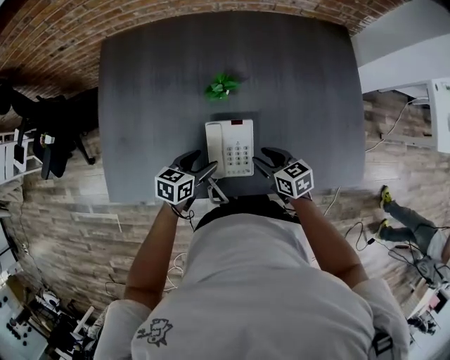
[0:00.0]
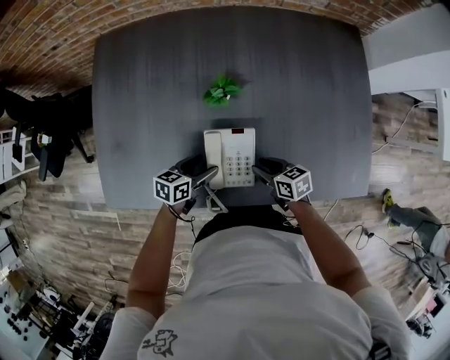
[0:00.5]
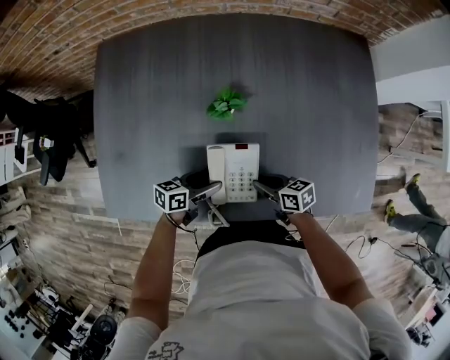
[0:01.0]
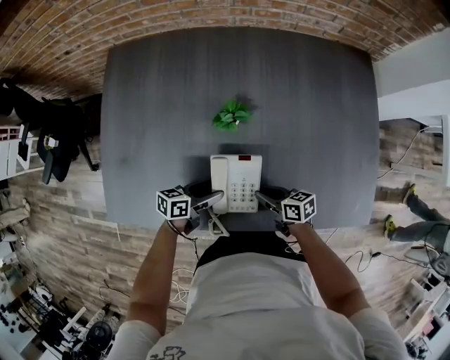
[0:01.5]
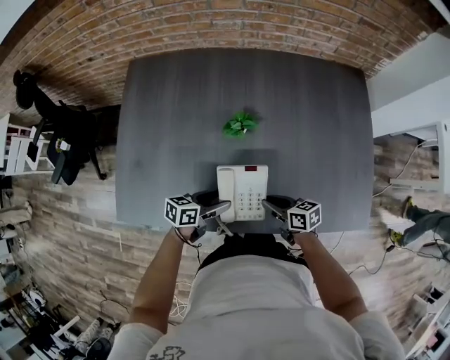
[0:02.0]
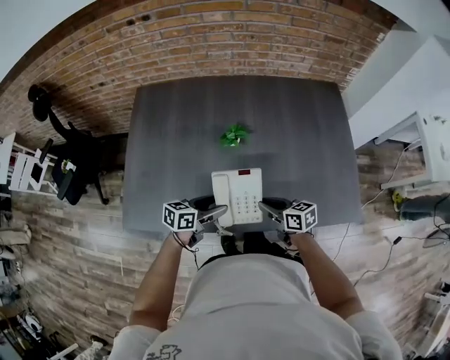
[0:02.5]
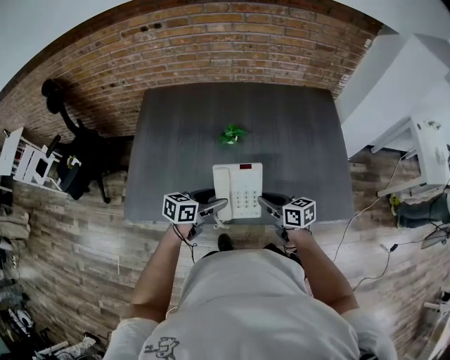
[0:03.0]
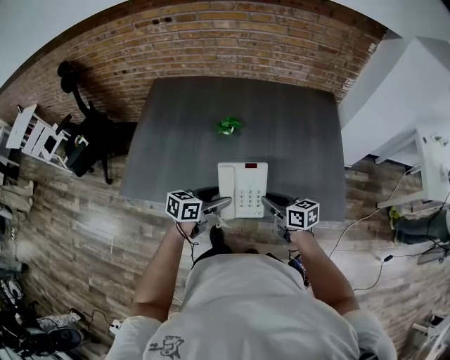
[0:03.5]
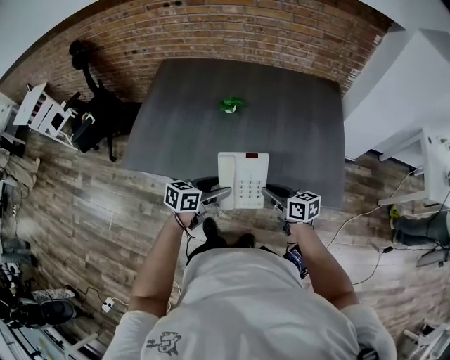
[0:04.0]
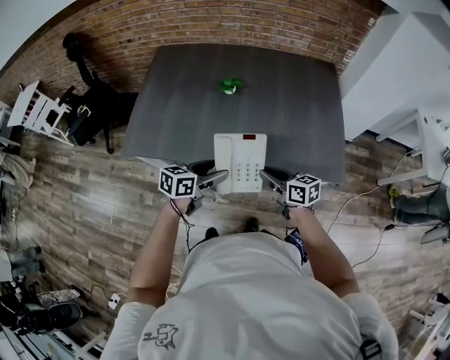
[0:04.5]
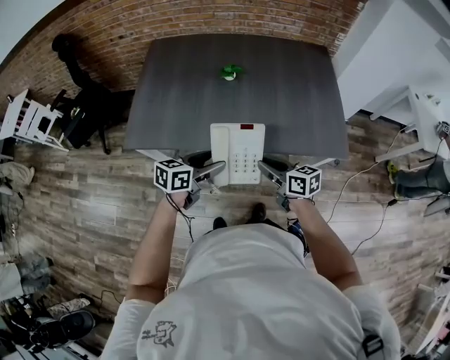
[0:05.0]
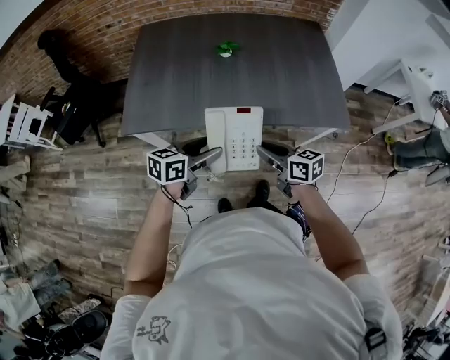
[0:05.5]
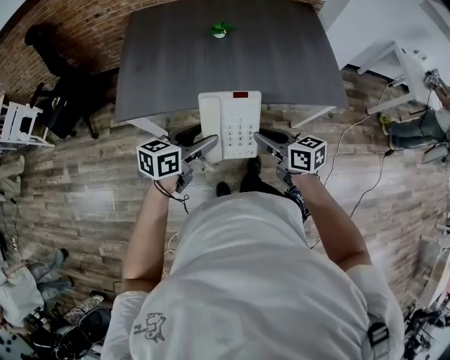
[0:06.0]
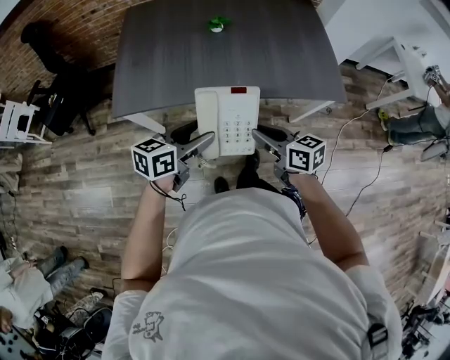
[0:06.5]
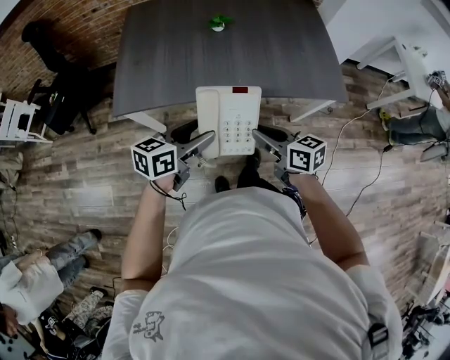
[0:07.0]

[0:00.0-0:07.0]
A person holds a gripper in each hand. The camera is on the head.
0:00.0 to 0:02.0: The right gripper closes its fingers.
0:02.0 to 0:03.5: The two grippers go approximately 15 cm upward.
0:03.5 to 0:05.0: Both grippers travel together backward and to the left, approximately 15 cm.
0:05.0 to 0:07.0: Both grippers move backward and to the left, approximately 10 cm.

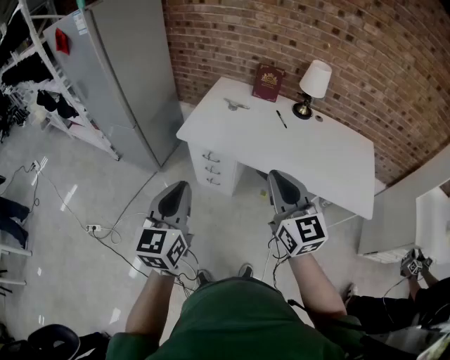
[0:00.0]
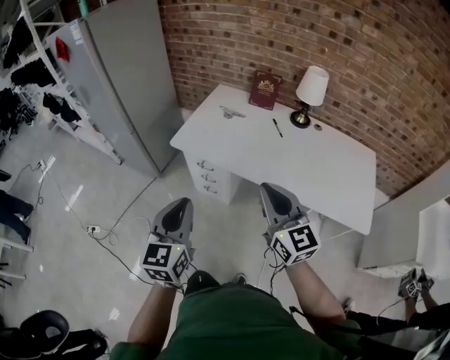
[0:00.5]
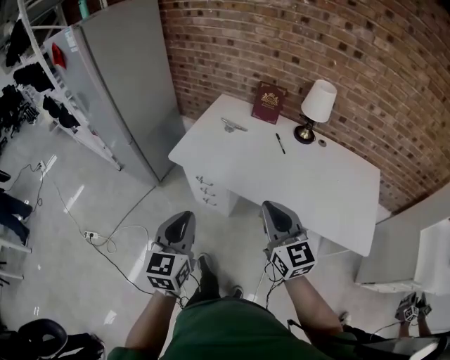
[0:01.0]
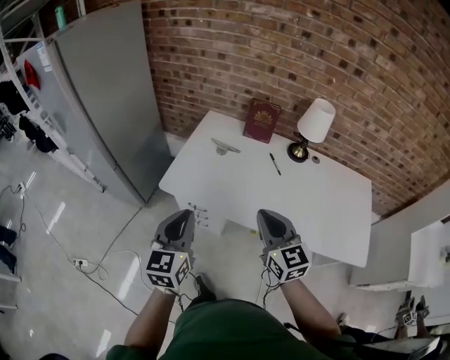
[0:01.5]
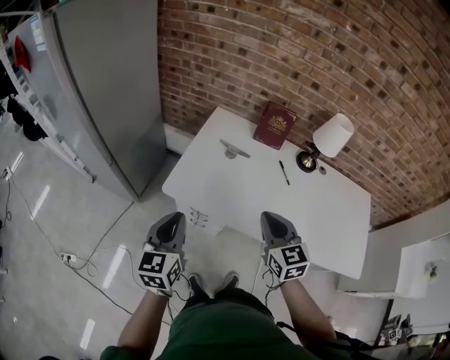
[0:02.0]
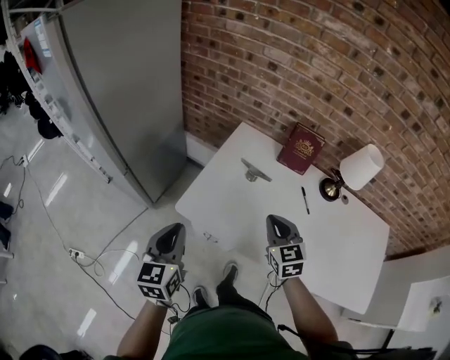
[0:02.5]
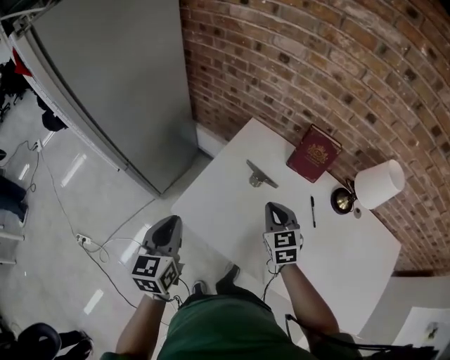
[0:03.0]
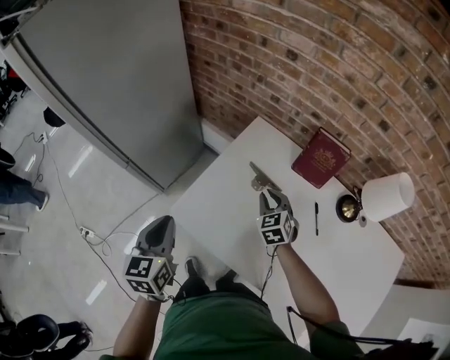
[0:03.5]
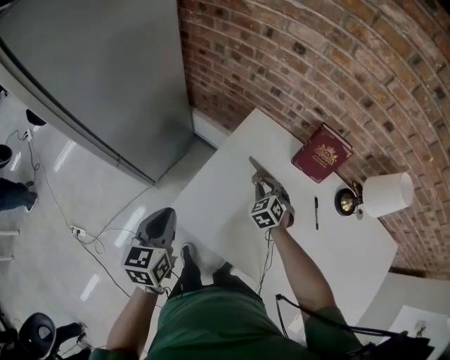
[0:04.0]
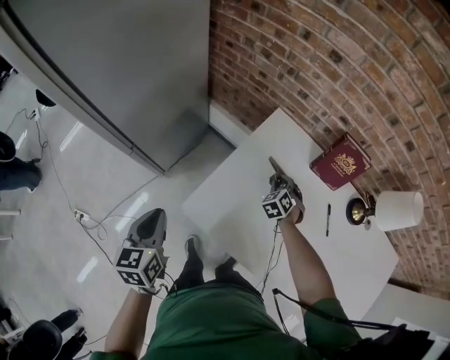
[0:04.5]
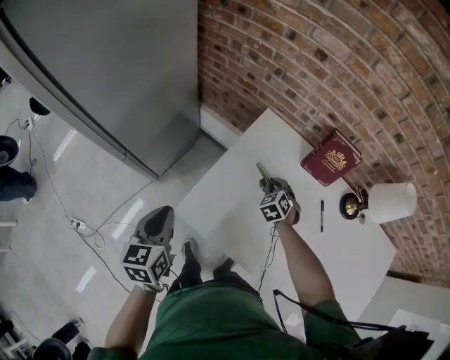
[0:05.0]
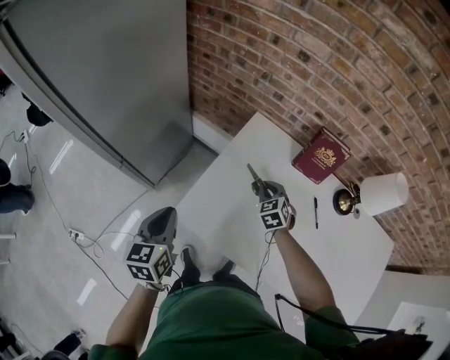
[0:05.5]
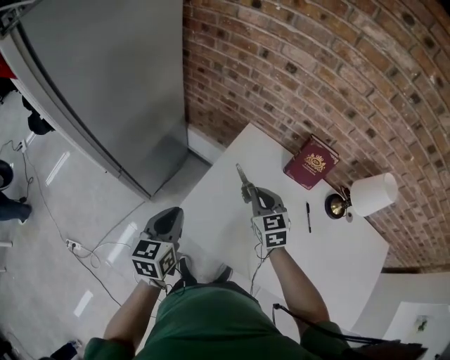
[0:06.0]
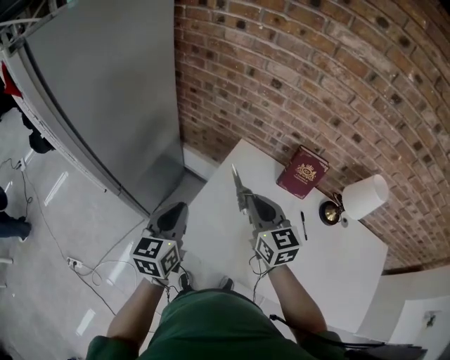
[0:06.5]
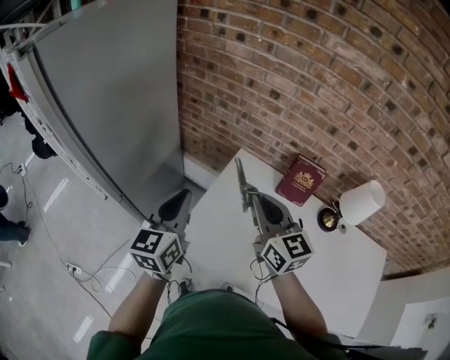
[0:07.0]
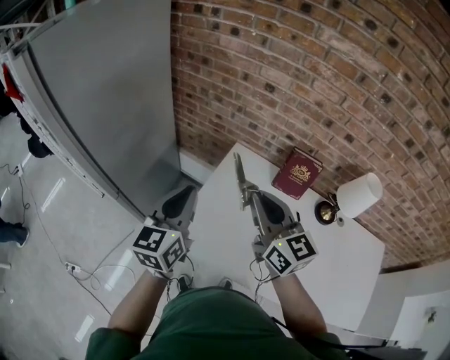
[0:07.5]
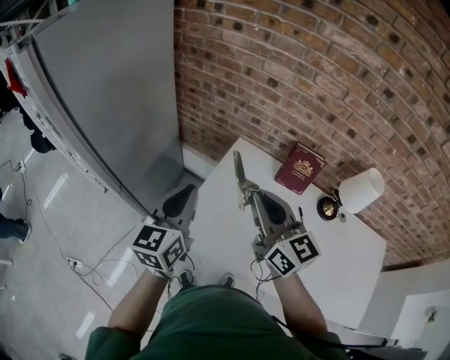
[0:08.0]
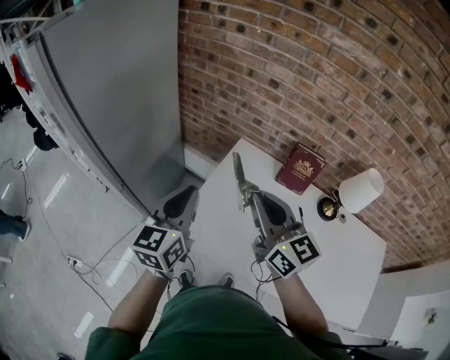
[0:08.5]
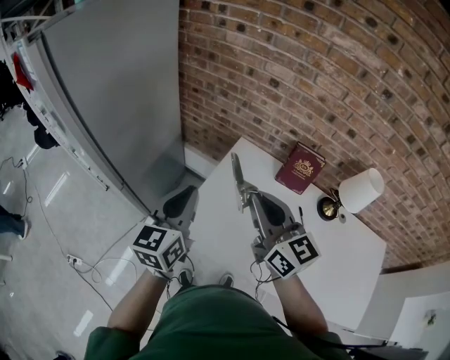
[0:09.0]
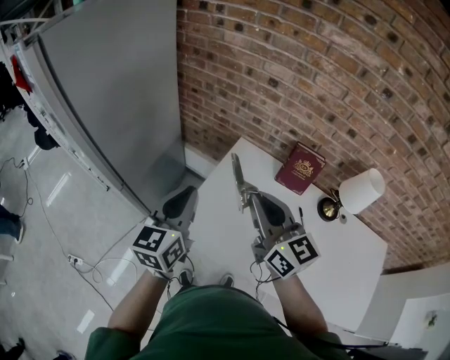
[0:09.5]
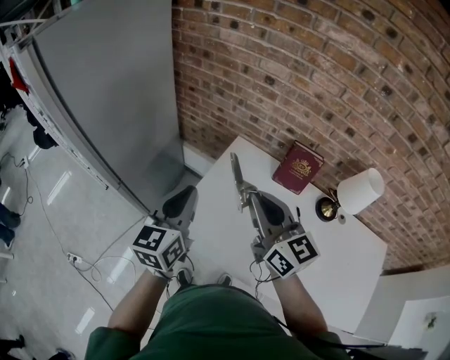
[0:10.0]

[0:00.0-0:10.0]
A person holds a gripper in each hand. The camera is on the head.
0:00.0 to 0:02.0: The right gripper is displaced forward and downward by approximately 30 cm, and swivels approximately 20 degrees; the left gripper moves forward, some 30 cm.
0:02.0 to 0:04.0: The left gripper heads forward, covering approximately 20 cm. The right gripper moves forward and downward, about 40 cm, and swivels about 40 degrees.
0:04.0 to 0:06.0: The right gripper is displaced upward by about 15 cm, and changes its angle by approximately 30 degrees; the left gripper reaches approximately 10 cm to the left, then returns.
0:06.0 to 0:08.0: The right gripper moves upward, roughly 25 cm, and tilts its fingers approximately 30 degrees upward; the left gripper is displaced upward by roughly 15 cm, and changes its angle by some 20 degrees.
0:08.0 to 0:10.0: There are only small adjustments of the grippers.

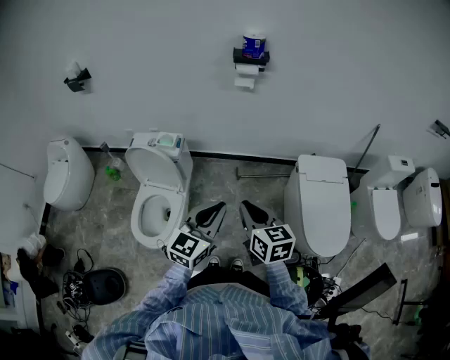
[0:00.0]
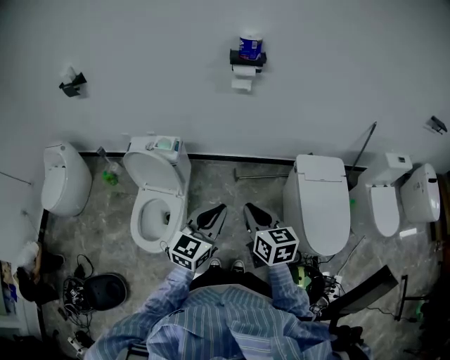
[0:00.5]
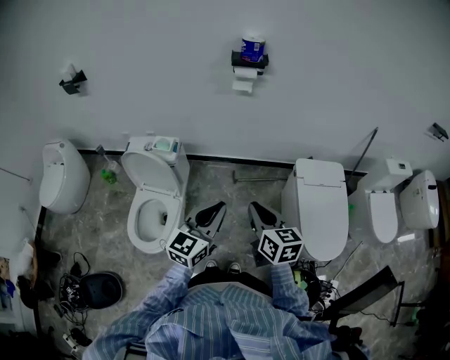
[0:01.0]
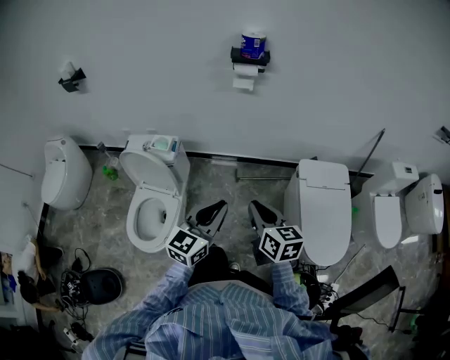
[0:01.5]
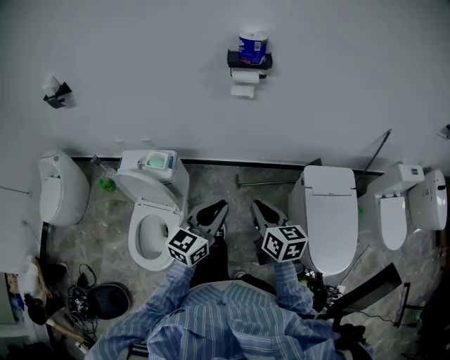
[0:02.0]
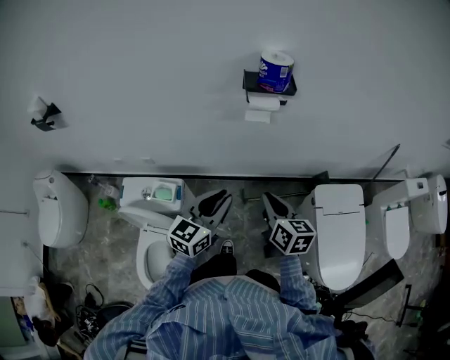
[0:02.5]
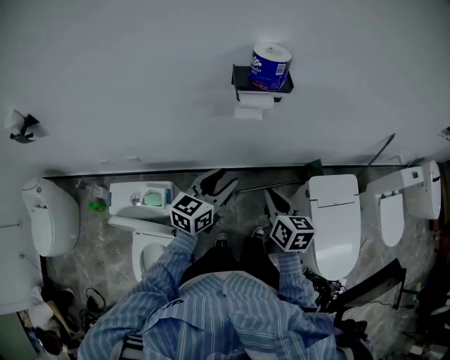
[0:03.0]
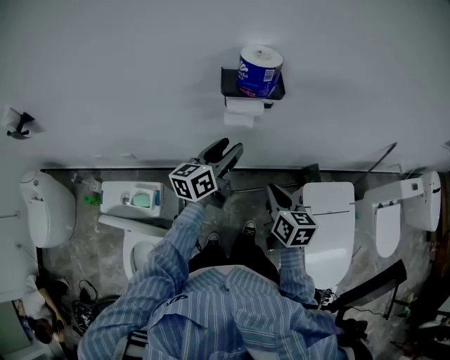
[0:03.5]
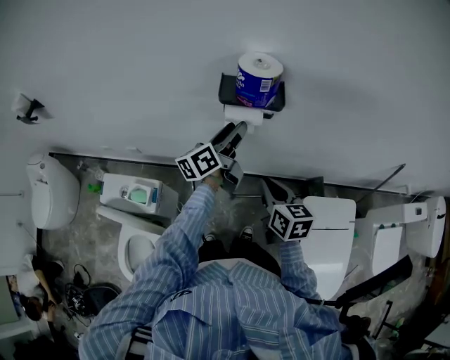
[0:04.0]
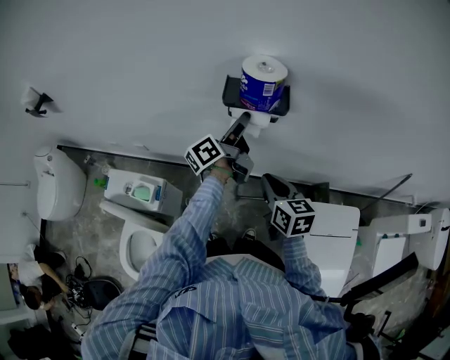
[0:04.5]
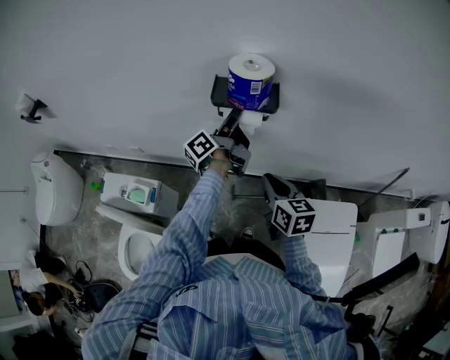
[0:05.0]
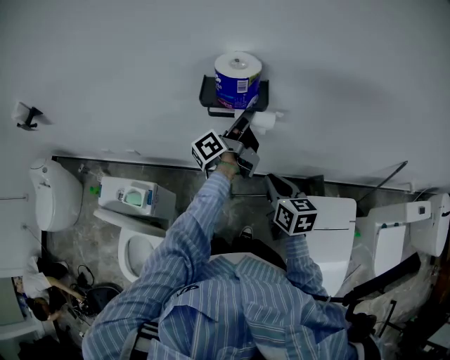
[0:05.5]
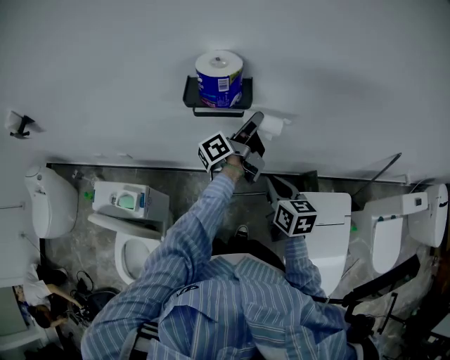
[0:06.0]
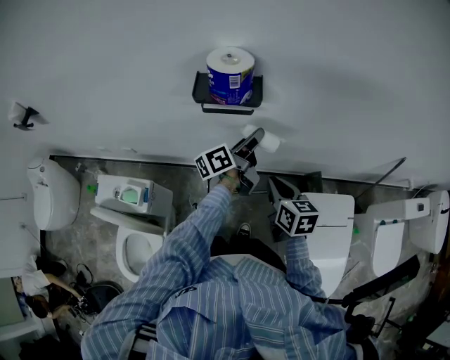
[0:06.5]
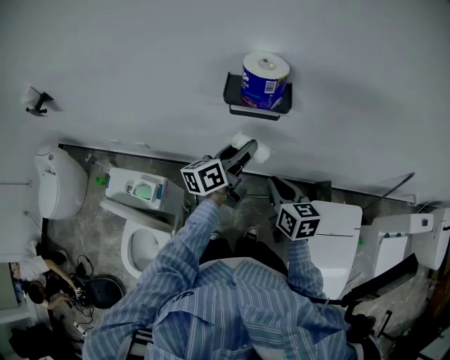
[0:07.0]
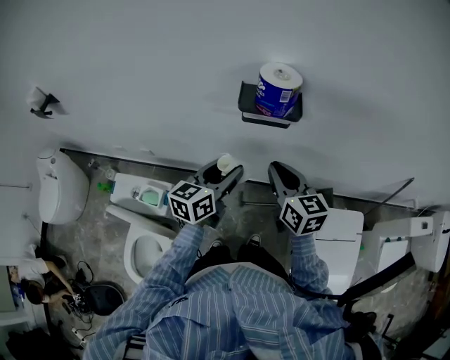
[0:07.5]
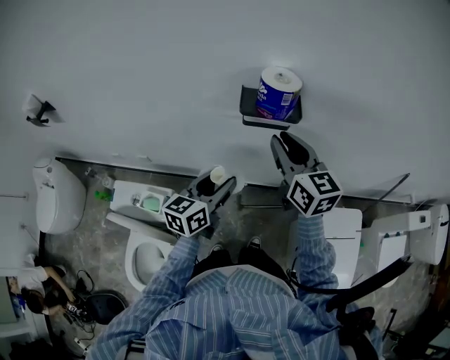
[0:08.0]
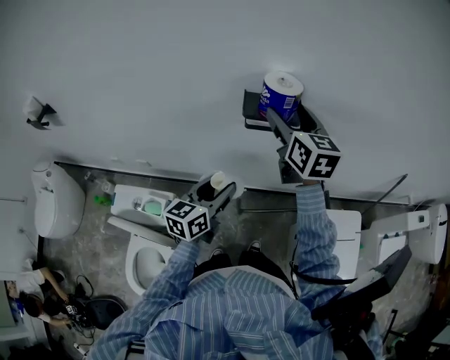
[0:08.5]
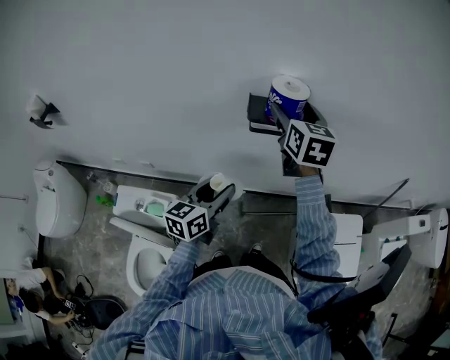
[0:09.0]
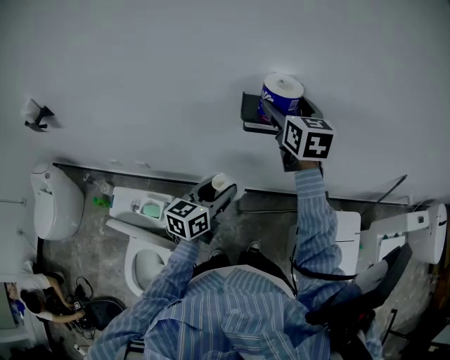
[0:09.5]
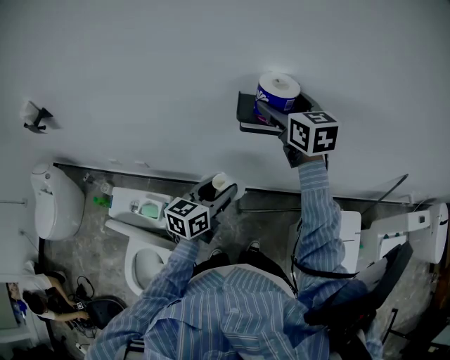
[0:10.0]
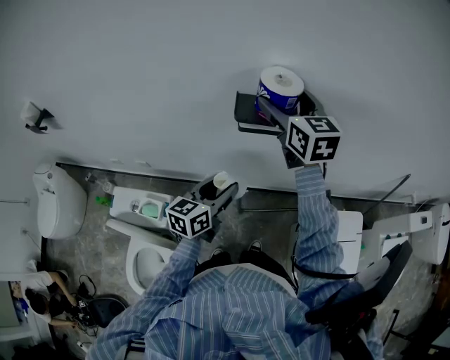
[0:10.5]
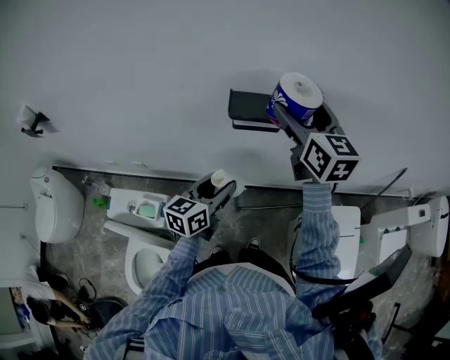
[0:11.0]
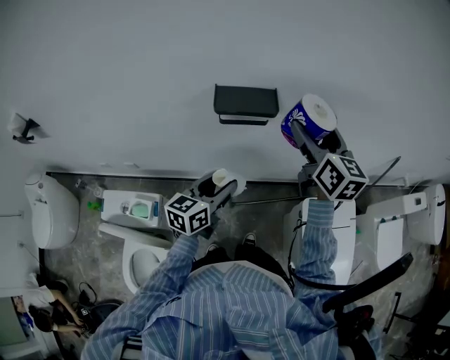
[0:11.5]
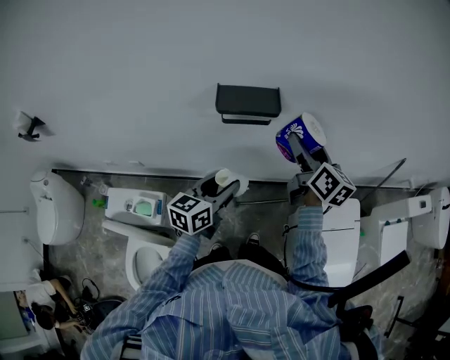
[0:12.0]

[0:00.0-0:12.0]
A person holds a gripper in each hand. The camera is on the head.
0:00.0 to 0:02.0: Both grippers travel together forward, approximately 15 cm.
0:02.0 to 0:04.0: The grippers both shift forward by roughly 40 cm. The left gripper rotates around the line of its fingers by approximately 40 degrees, counterclockwise from behind, and opens its fingers.
0:04.0 to 0:06.0: The left gripper goes roughly 15 cm to the right, and changes its angle by some 30 degrees, while the right gripper travels to the right by approximately 10 cm.
0:06.0 to 0:08.0: The left gripper travels to the left and backward by roughly 25 cm, and twists roughly 50 degrees clockwise, seen from behind. Meanwhile the right gripper travels upward and to the left by some 25 cm, and rotates roughly 30 degrees.
0:08.0 to 0:10.0: The right gripper moves forward, some 10 cm, and opens its fingers.
0:10.0 to 0:12.0: The right gripper moves to the right, downward and backward, roughly 20 cm, and swivels about 40 degrees.
